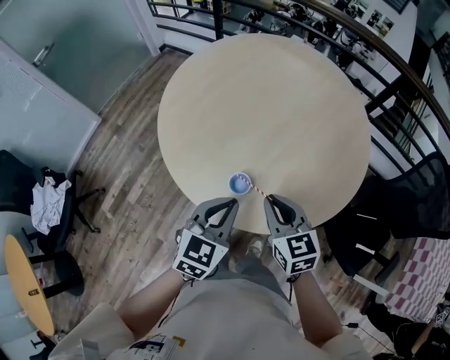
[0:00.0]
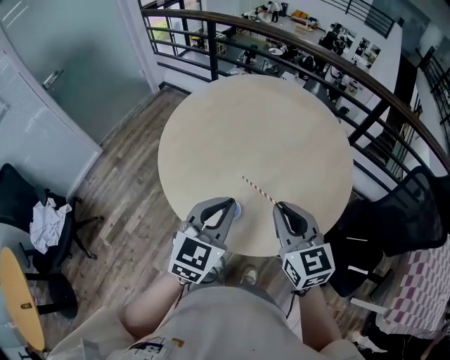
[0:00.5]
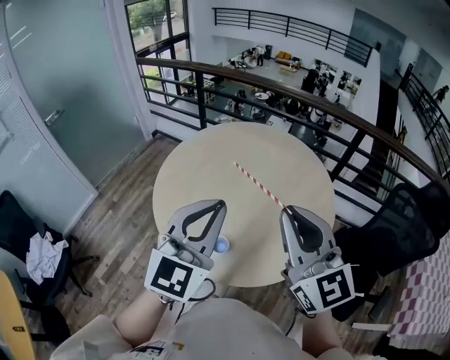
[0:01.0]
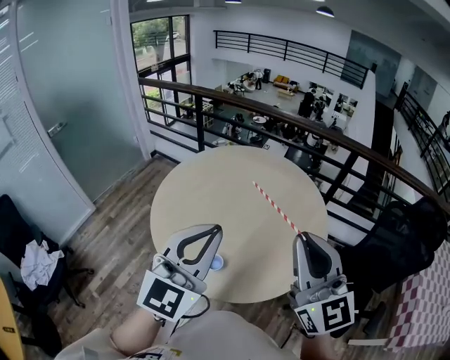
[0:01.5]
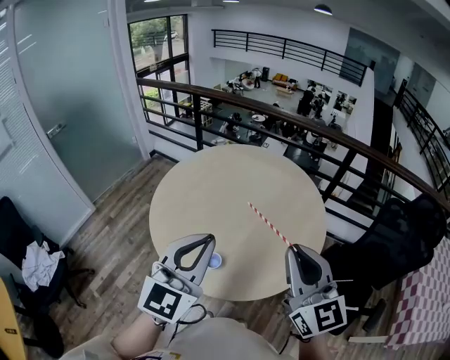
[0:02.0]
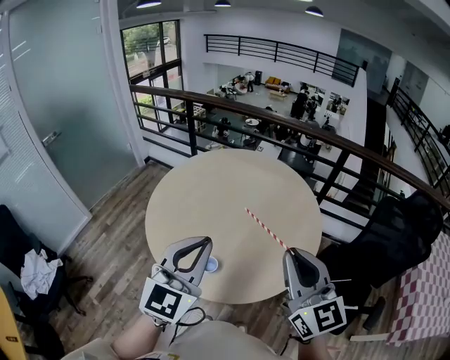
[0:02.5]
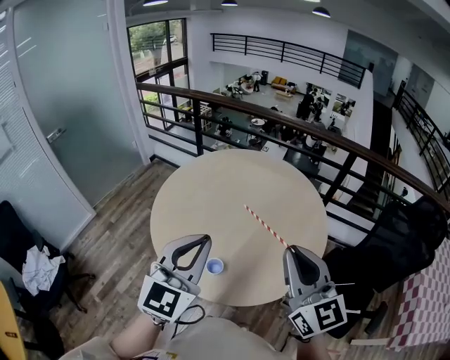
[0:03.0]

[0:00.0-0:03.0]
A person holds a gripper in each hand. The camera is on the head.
0:00.0 to 0:01.5: The two grippers go about 35 cm upward. The right gripper tips its fingers upward by roughly 40 degrees, while the left gripper tilts its fingers about 30 degrees upward.
0:01.5 to 0:03.0: The grippers make only small movements.

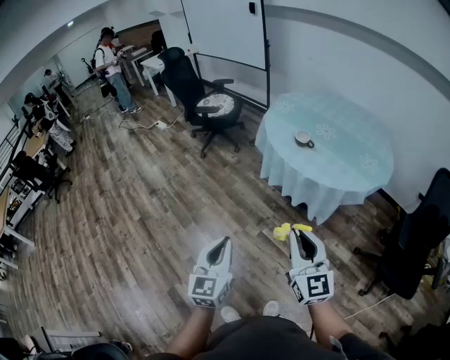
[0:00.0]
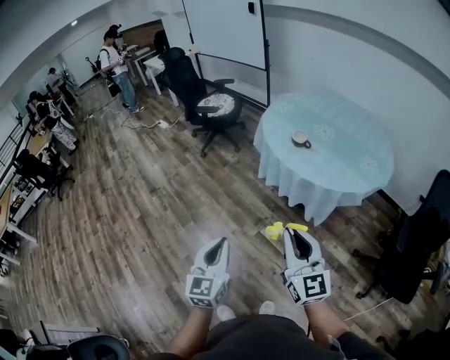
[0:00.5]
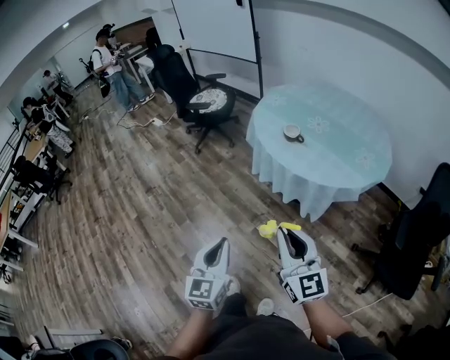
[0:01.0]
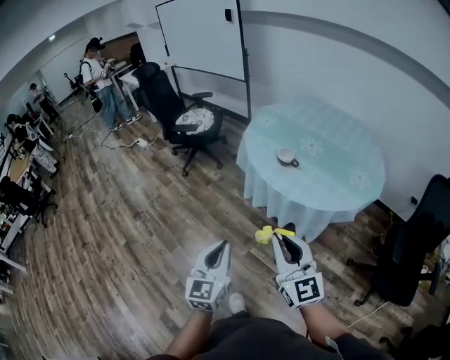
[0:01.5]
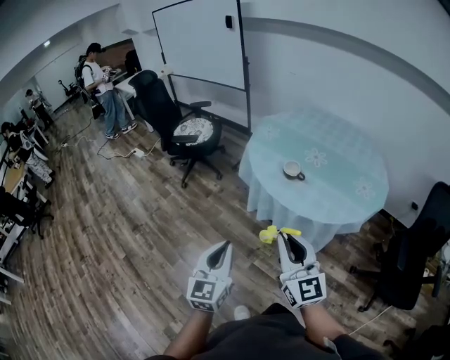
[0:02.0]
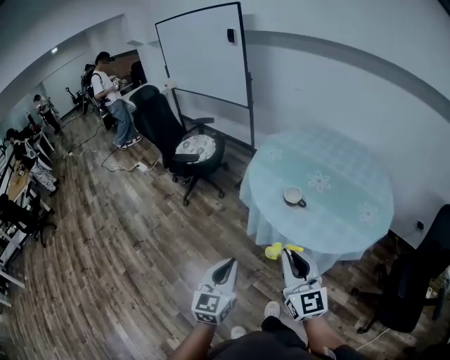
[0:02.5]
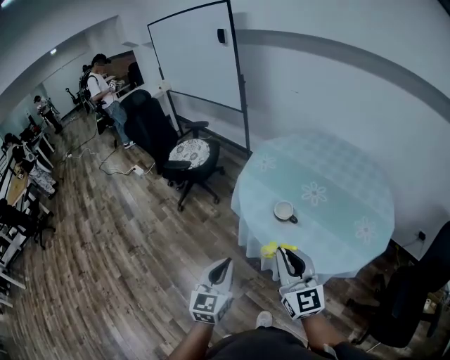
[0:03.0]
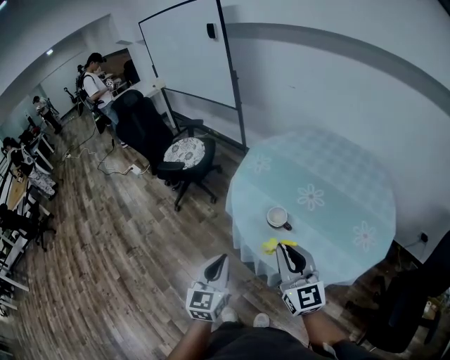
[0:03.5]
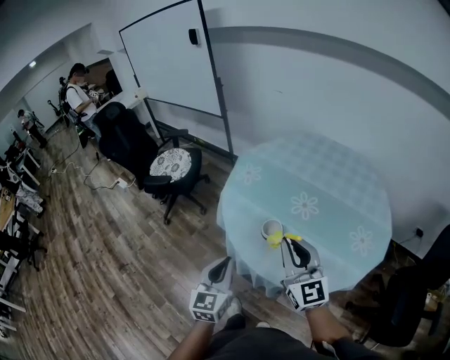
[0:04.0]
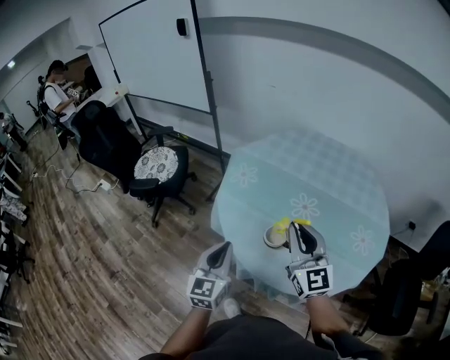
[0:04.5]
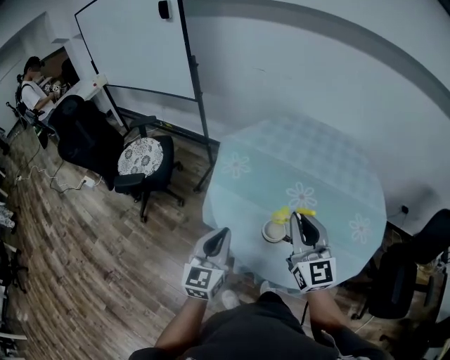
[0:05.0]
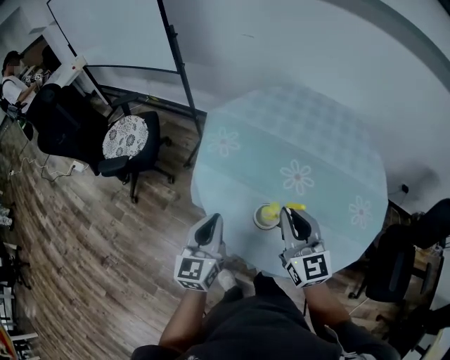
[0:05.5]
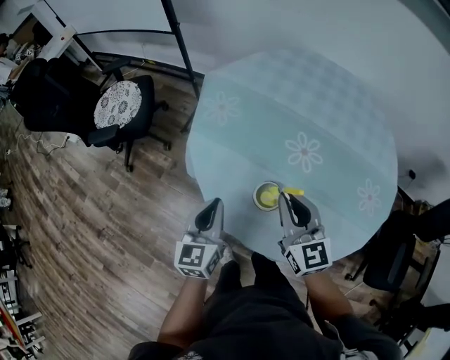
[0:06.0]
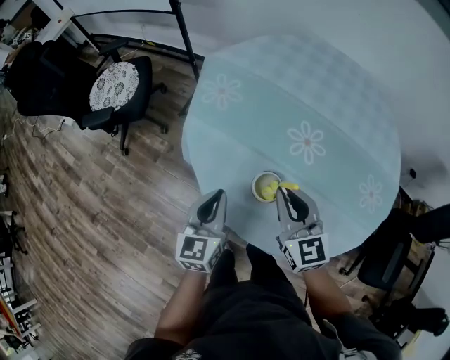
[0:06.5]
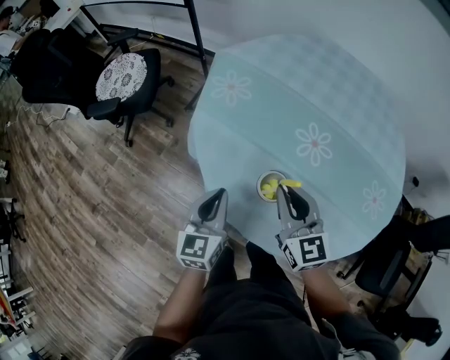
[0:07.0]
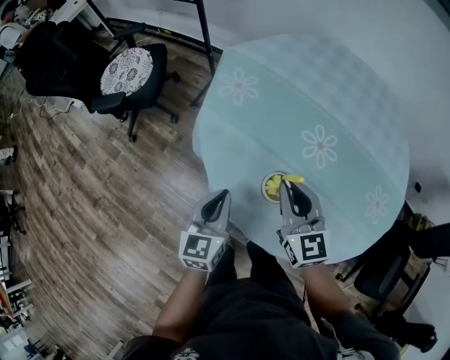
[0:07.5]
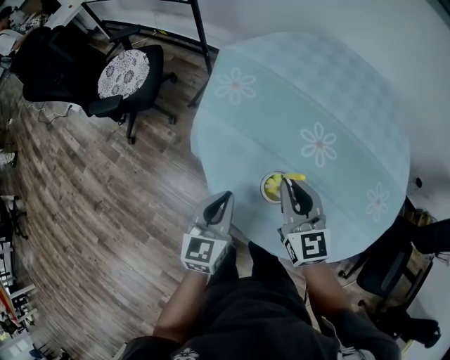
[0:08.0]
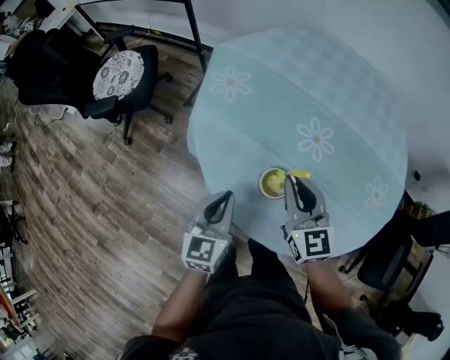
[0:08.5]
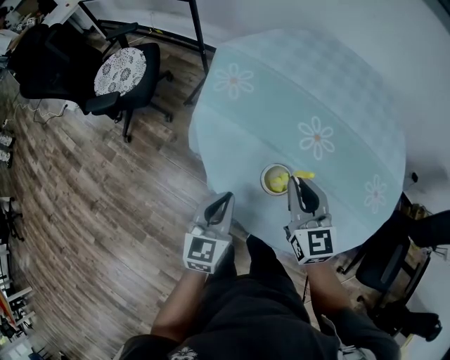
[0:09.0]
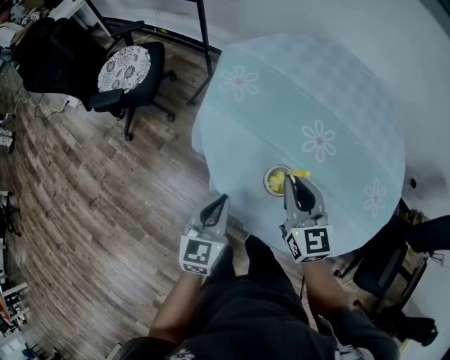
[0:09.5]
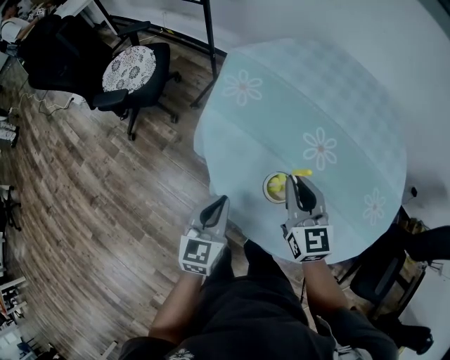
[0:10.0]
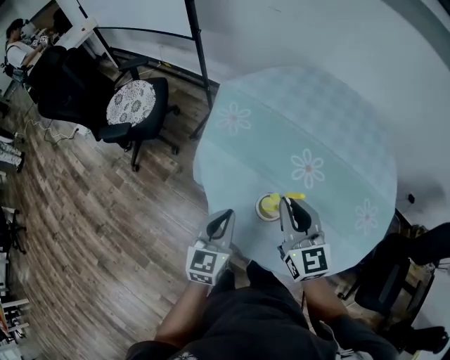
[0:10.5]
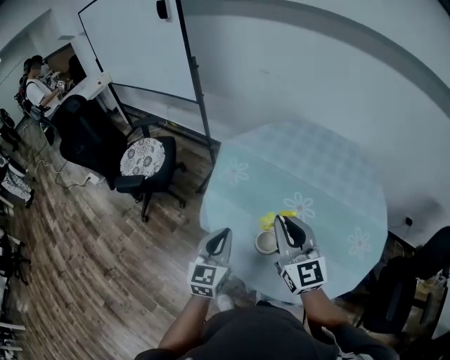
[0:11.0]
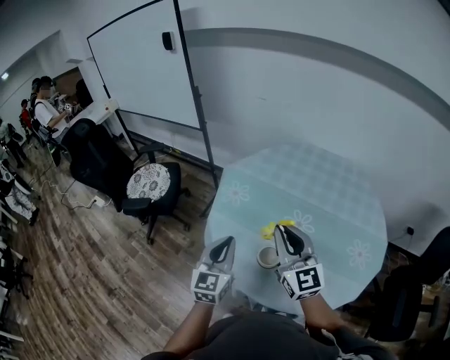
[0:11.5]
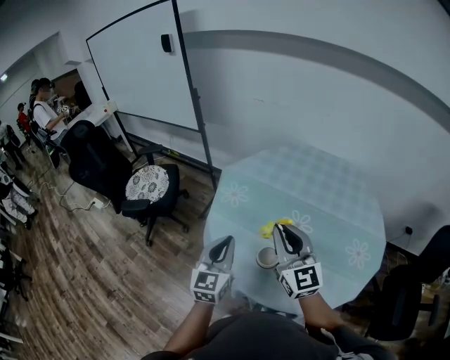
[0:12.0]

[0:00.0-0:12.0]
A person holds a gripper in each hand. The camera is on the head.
0:00.0 to 0:02.0: The two grippers go about 25 cm forward.
0:02.0 to 0:04.0: The pair of grippers is taken forward and to the right, roughly 40 cm.
0:04.0 to 0:06.0: Both grippers travel together forward and downward, roughly 30 cm. The right gripper turns by approximately 20 degrees.
0:06.0 to 0:08.0: Both grippers travel together downward, about 5 cm.
0:08.0 to 0:10.0: The grippers move only a little.
0:10.0 to 0:12.0: The two grippers go some 25 cm upward. The right gripper swivels approximately 20 degrees.

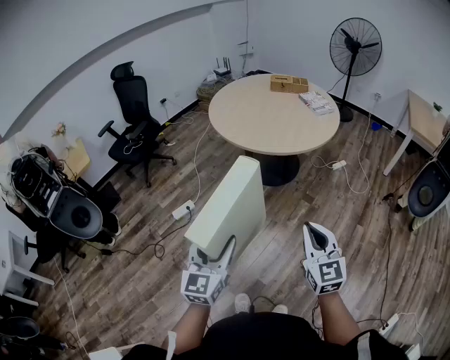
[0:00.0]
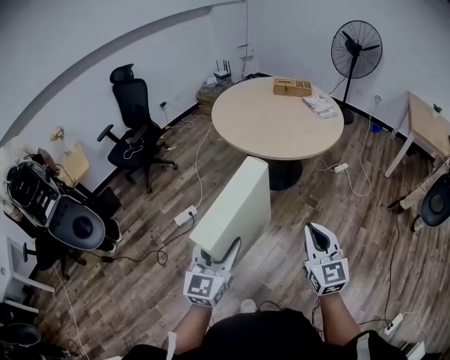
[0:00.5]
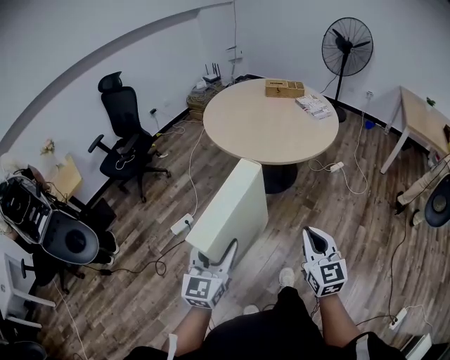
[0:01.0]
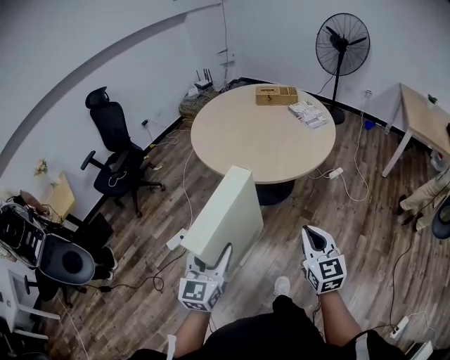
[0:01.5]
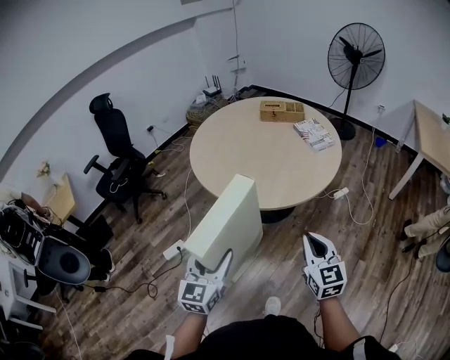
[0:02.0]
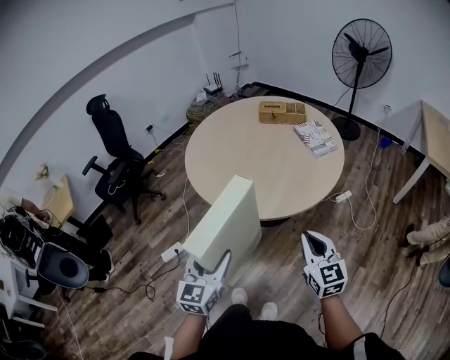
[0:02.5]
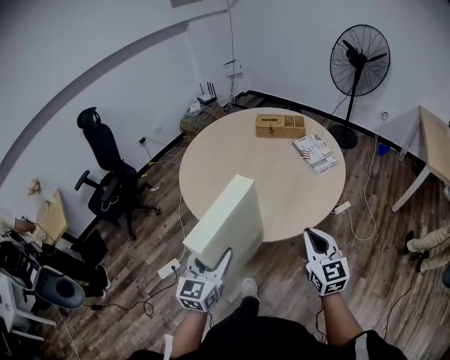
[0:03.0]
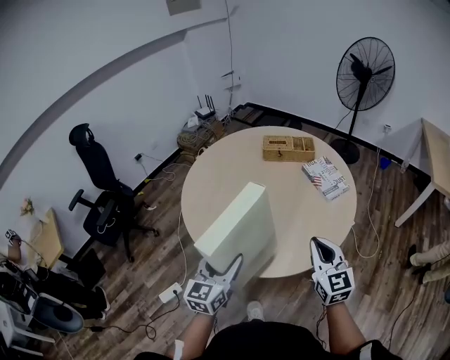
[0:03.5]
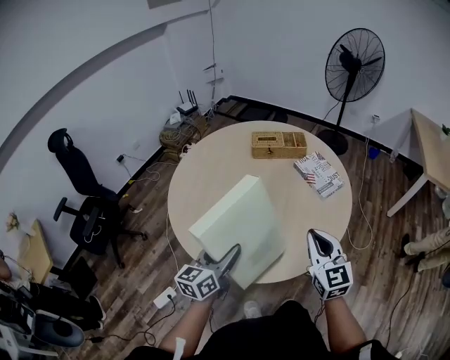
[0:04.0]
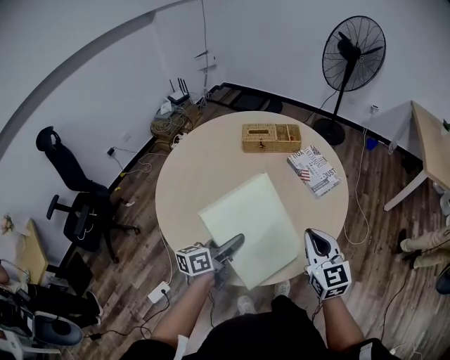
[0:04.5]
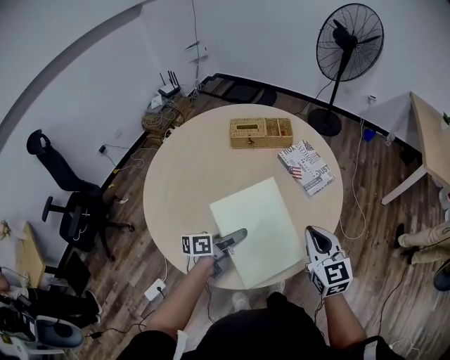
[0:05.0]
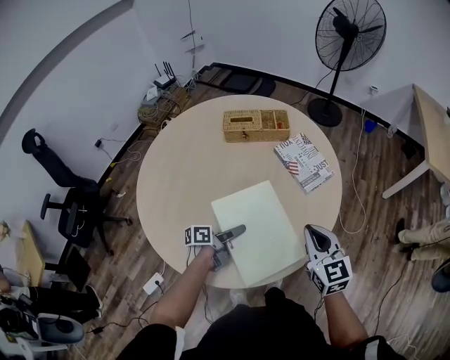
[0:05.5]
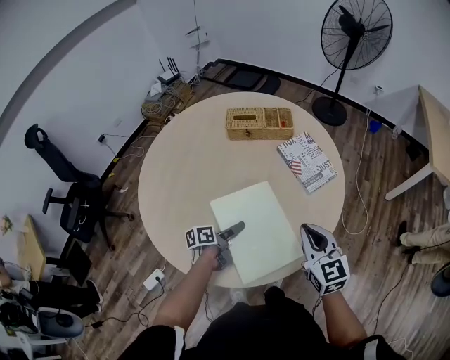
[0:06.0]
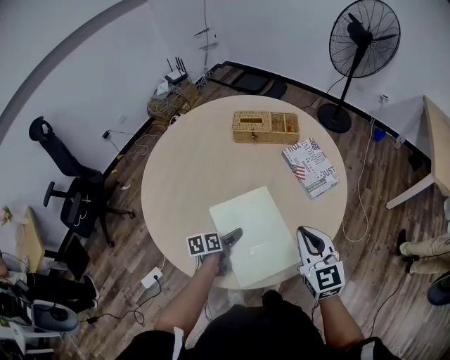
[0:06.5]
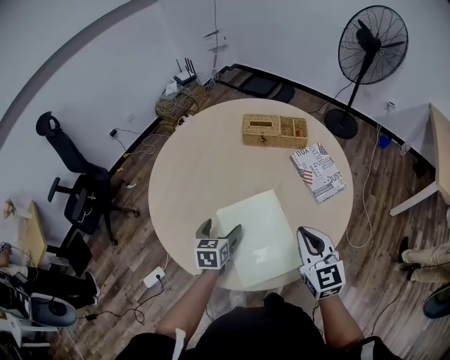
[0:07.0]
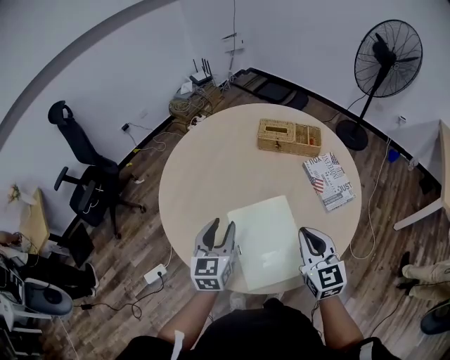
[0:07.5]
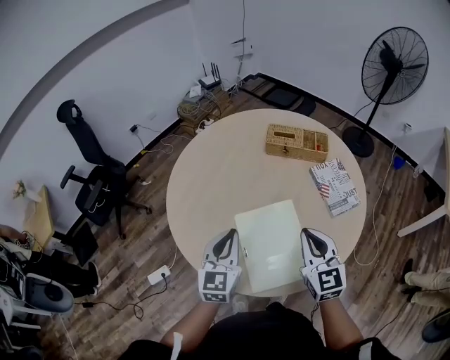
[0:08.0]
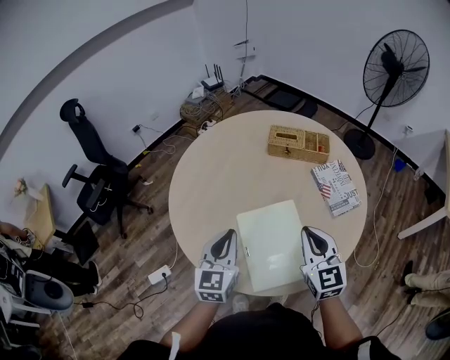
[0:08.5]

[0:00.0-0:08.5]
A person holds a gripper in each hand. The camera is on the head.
0:00.0 to 0:02.0: Both grippers travel together forward, about 30 cm.
0:02.0 to 0:04.0: Both grippers move forward, approximately 40 cm. The left gripper rotates some 30 degrees.
0:04.0 to 0:06.5: The right gripper heads forward and downward, covering about 10 cm. Meanwhile the left gripper travels downward and forward by roughly 25 cm, tilts its fingers approximately 30 degrees downward, and opens its fingers.
0:06.5 to 0:08.5: The right gripper travels to the left by approximately 5 cm. The left gripper travels upward by about 25 cm, changes its angle by some 60 degrees, and closes its fingers.

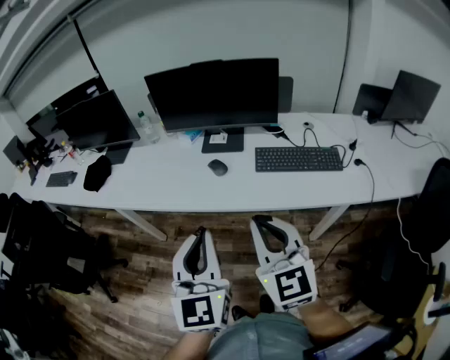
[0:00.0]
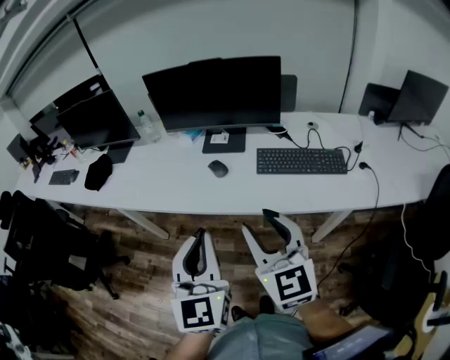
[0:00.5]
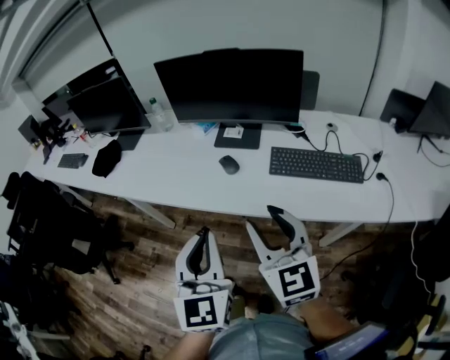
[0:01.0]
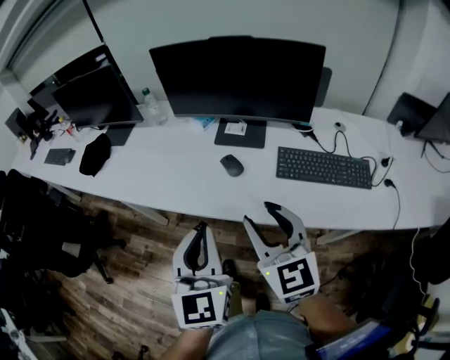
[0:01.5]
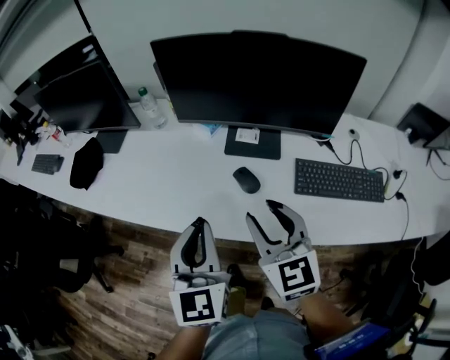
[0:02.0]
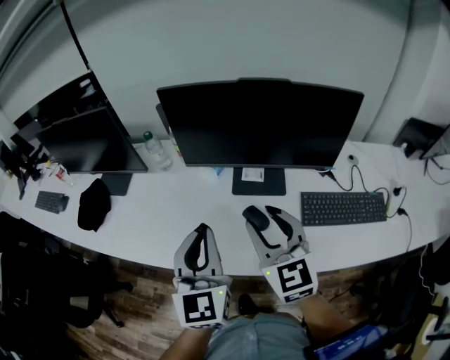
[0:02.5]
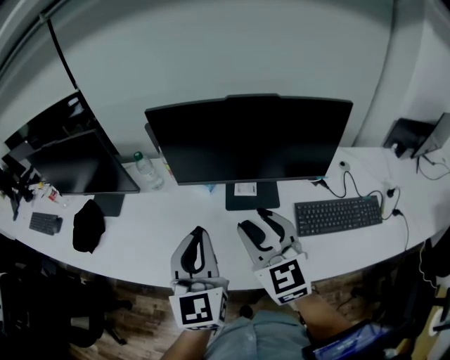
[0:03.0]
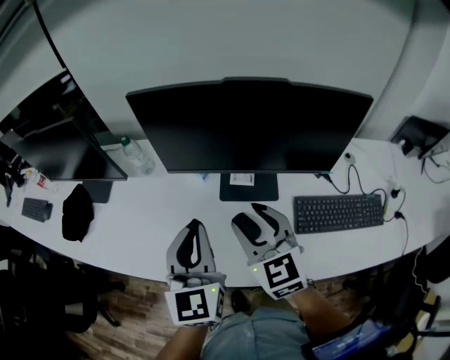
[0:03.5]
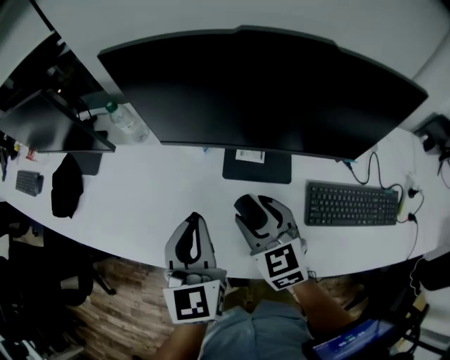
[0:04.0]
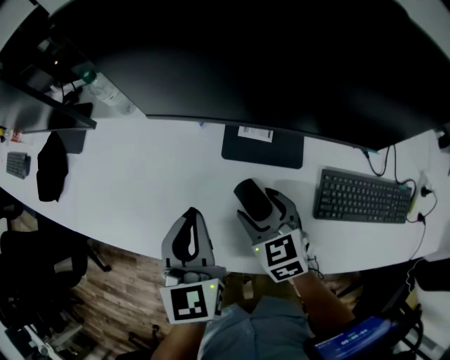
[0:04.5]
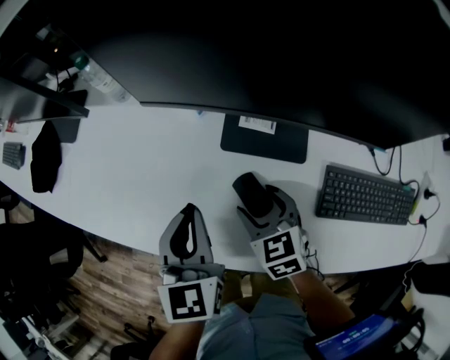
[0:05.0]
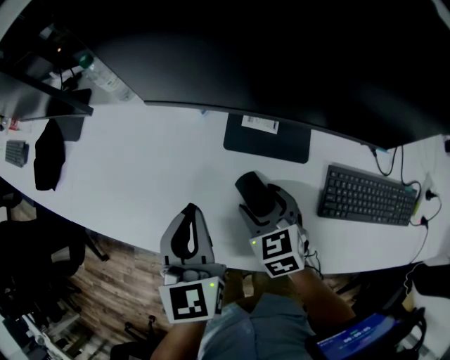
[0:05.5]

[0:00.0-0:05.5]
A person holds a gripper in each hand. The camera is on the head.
0:00.0 to 0:02.0: The grippers both shift forward by about 25 cm. The right gripper opens its fingers.
0:02.0 to 0:03.5: Both grippers move forward, roughly 15 cm.
0:03.5 to 0:05.5: The left gripper heads downward, covering approximately 15 cm, and rotates about 20 degrees, while the right gripper moves downward, approximately 25 cm, and turns by approximately 30 degrees.
